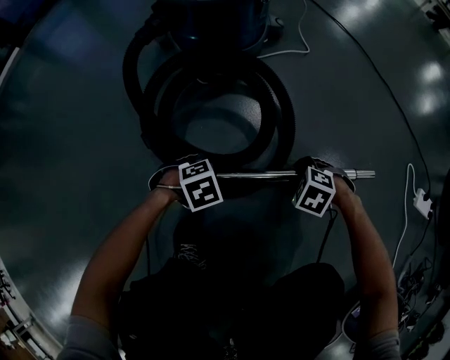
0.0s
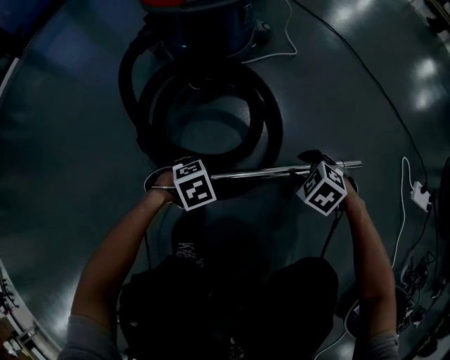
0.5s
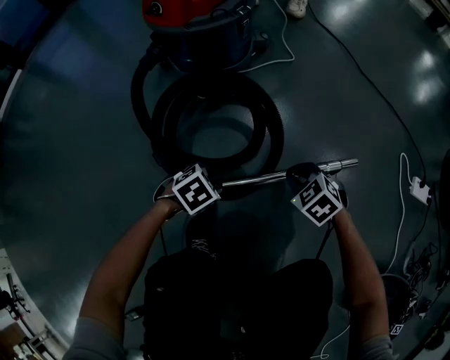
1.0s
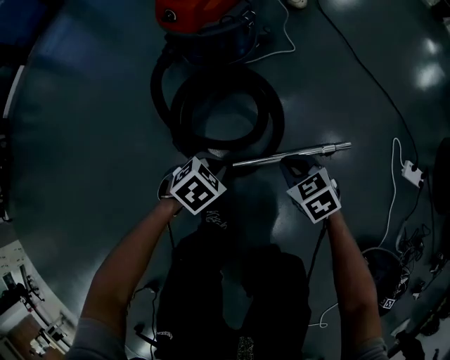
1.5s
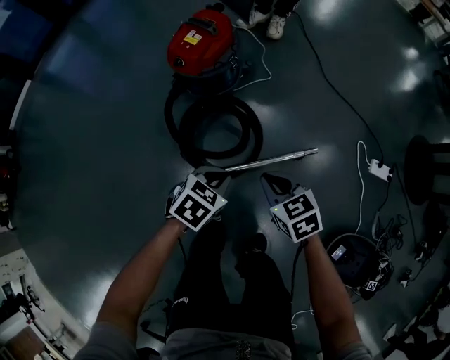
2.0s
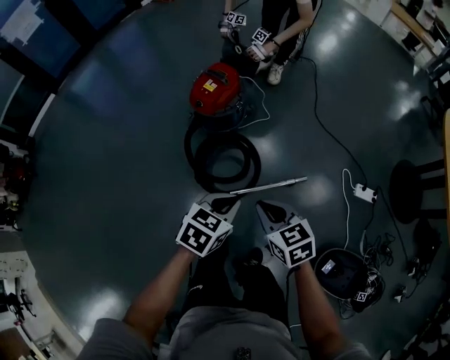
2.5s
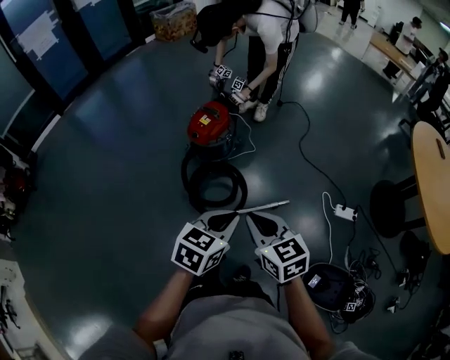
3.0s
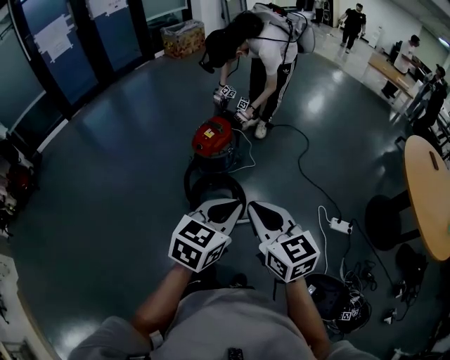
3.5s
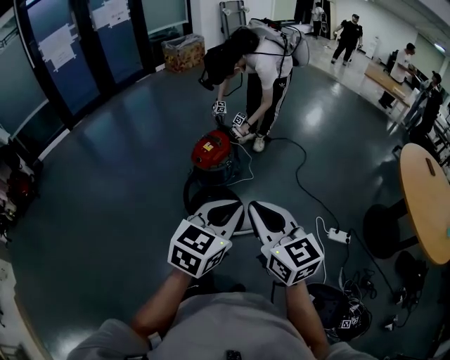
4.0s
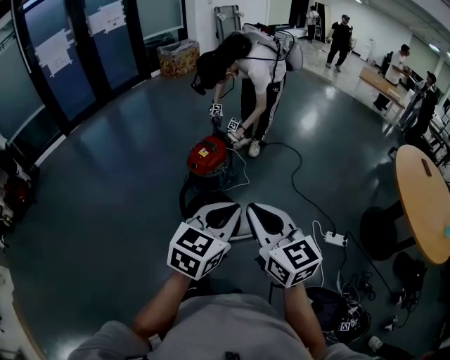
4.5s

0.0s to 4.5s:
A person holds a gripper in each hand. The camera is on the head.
0.0s to 2.0s: Both grippers move upward, roughly 50 cm. The left gripper changes its angle by roughly 30 degrees, and closes its fingers, while the right gripper angles its fingers upward, by about 40 degrees, and closes its fingers.
2.0s to 4.5s: Both grippers move upward, some 50 cm. The left gripper tips its fingers upward by roughly 40 degrees, while the right gripper tilts its fingers some 40 degrees upward.

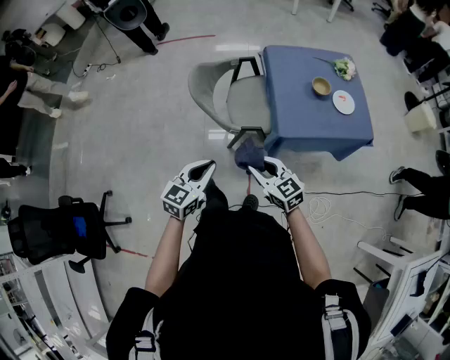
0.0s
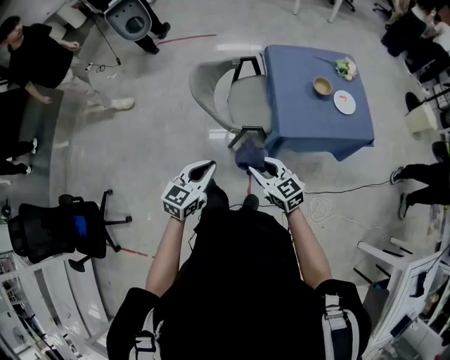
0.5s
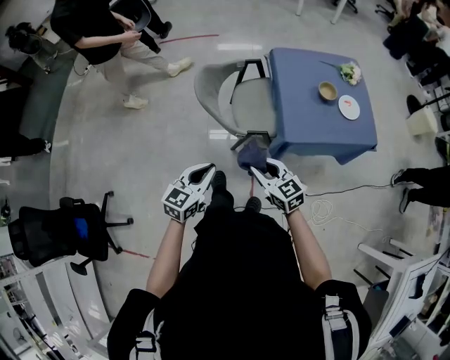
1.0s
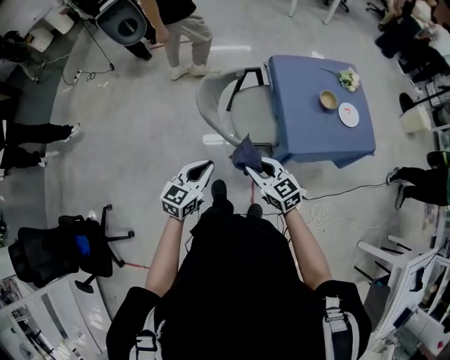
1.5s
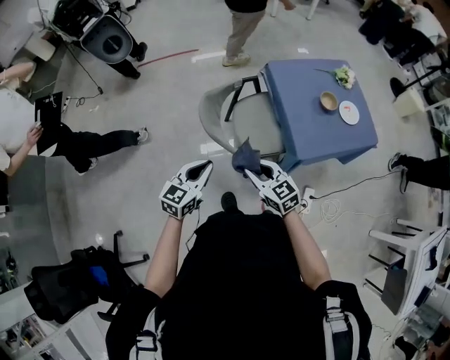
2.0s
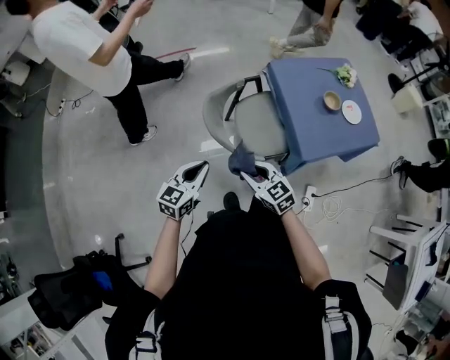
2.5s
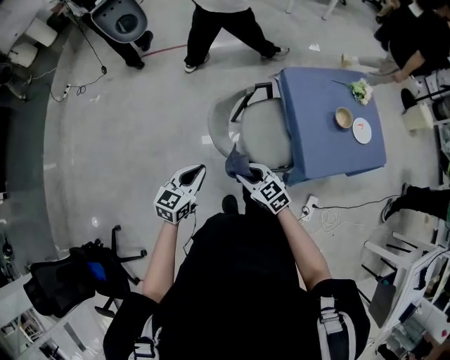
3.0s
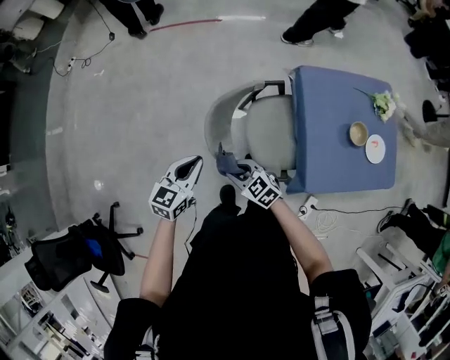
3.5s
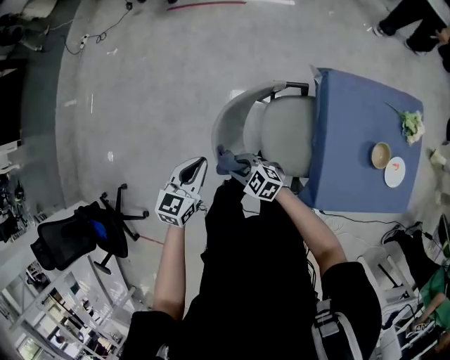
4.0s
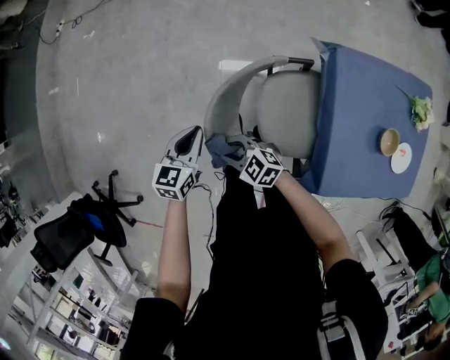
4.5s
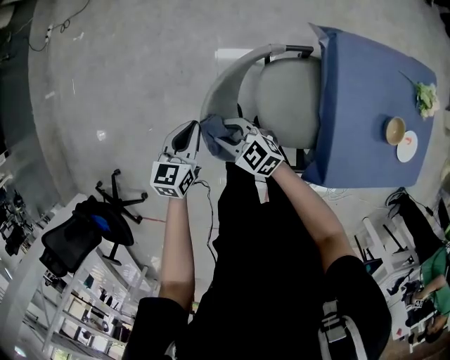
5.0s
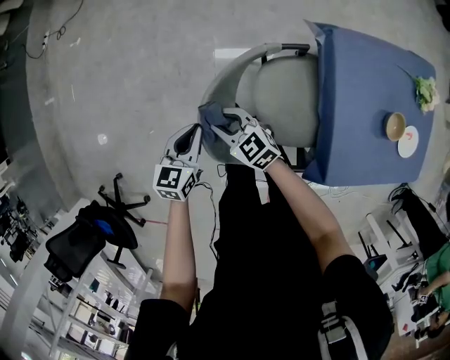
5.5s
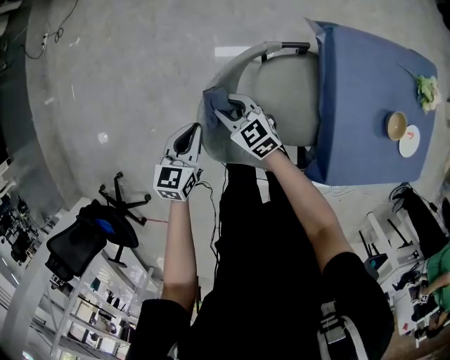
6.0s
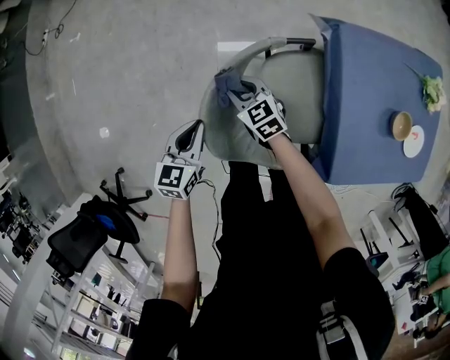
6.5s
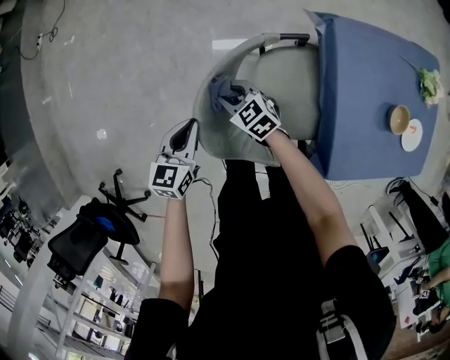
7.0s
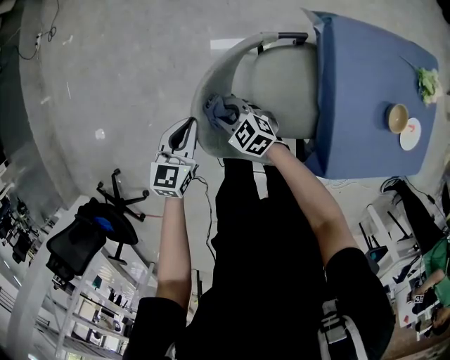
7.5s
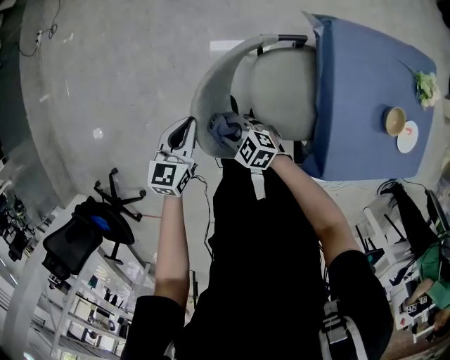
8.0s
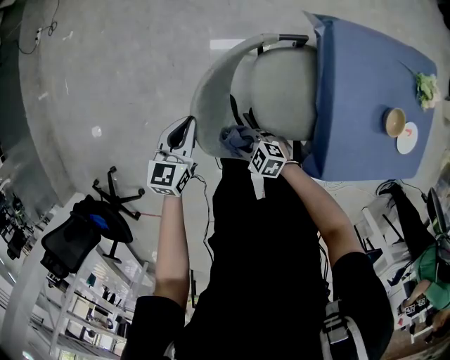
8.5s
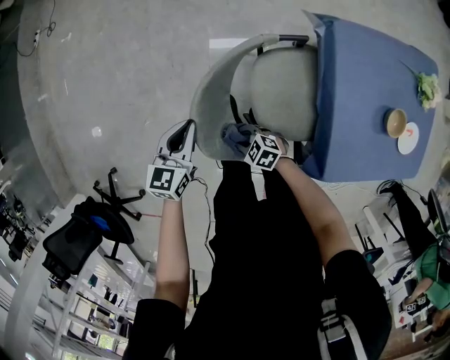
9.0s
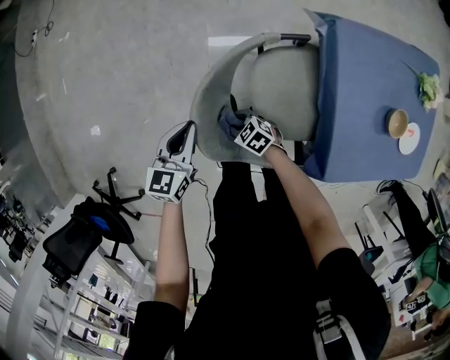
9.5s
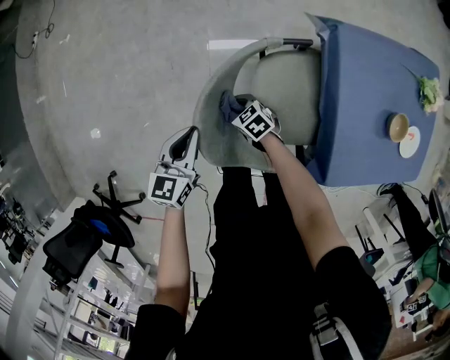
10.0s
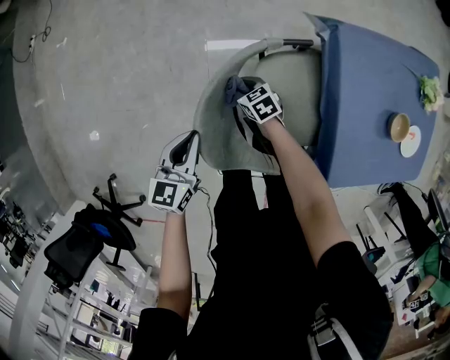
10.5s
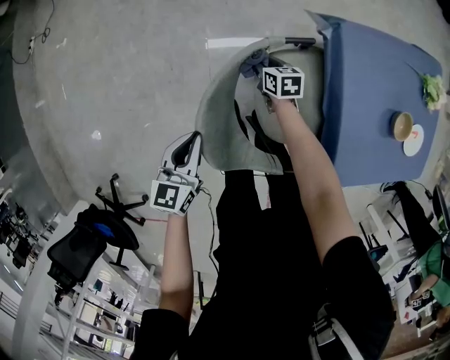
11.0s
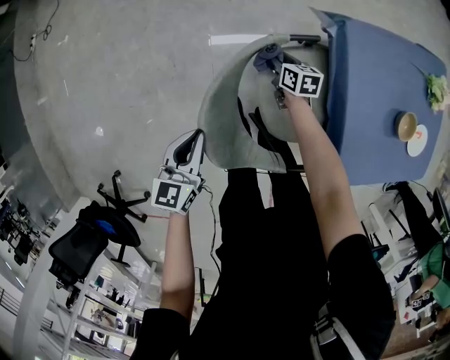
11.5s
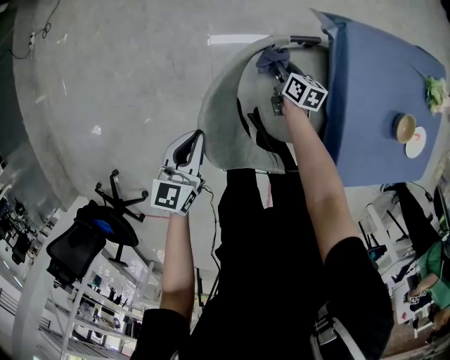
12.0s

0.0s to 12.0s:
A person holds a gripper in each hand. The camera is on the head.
0.0s to 2.0s: Both grippers move forward and to the left, some 25 cm.
2.0s to 4.0s: The left gripper ends up approximately 30 cm from where it was, and swivels about 30 degrees; the right gripper shifts by approximately 35 cm, and turns by approximately 50 degrees.
4.0s to 6.0s: The left gripper is displaced downward and forward by about 15 cm; the right gripper is displaced forward by roughly 15 cm, and rotates approximately 30 degrees.
6.0s to 8.0s: The right gripper travels backward and downward by some 15 cm, and rotates approximately 30 degrees.
8.0s to 10.0s: The right gripper shifts approximately 15 cm downward, forward and to the right, and rotates approximately 30 degrees.
10.0s to 12.0s: The right gripper moves approximately 20 cm, and rotates approximately 60 degrees.

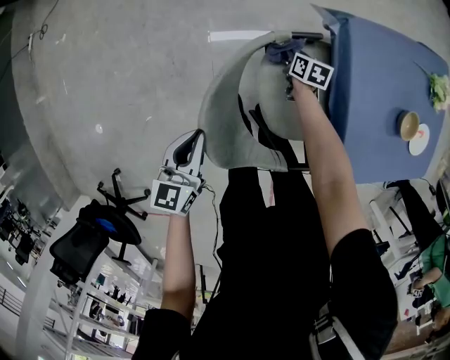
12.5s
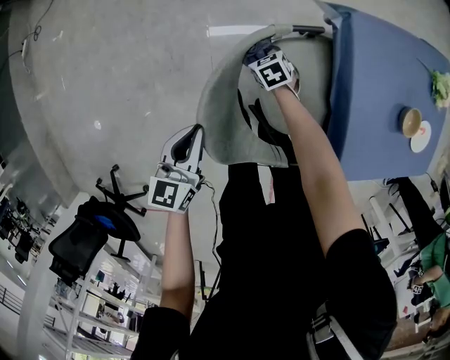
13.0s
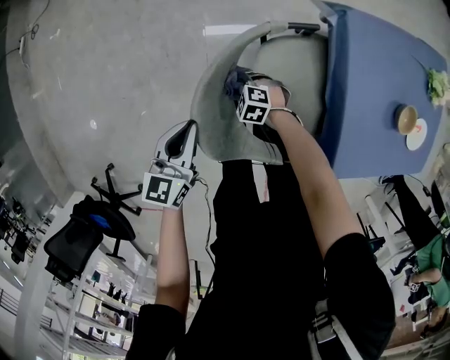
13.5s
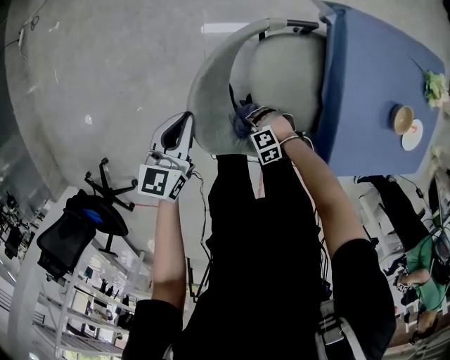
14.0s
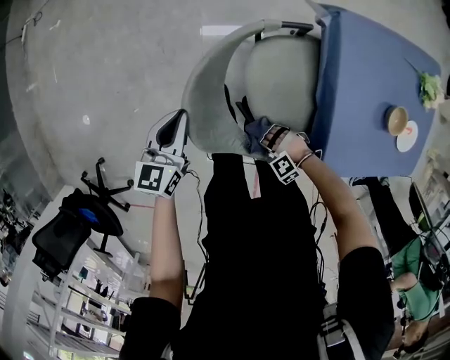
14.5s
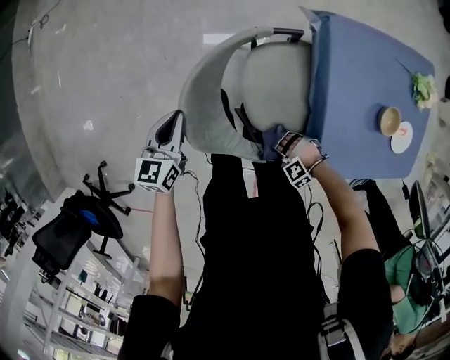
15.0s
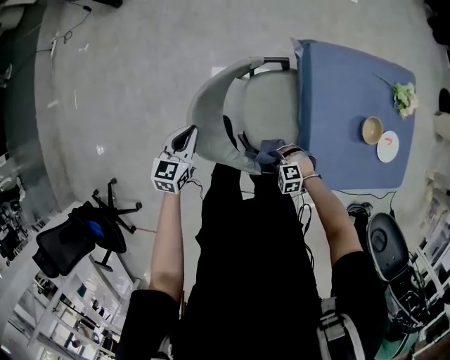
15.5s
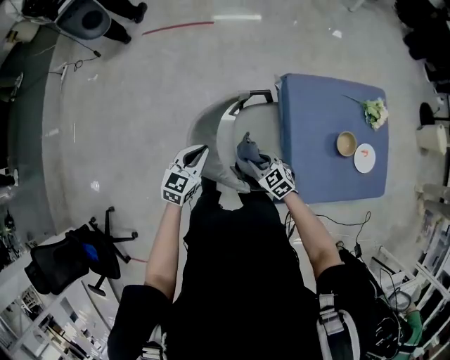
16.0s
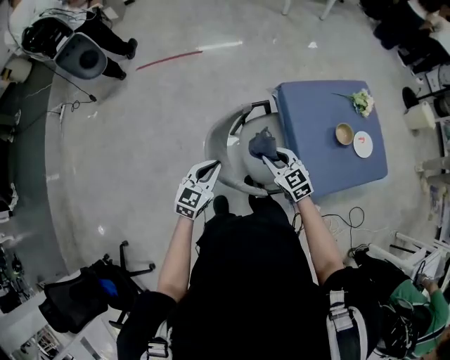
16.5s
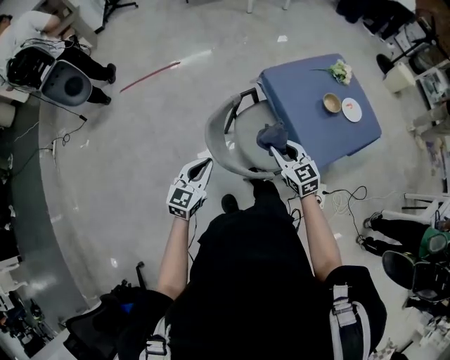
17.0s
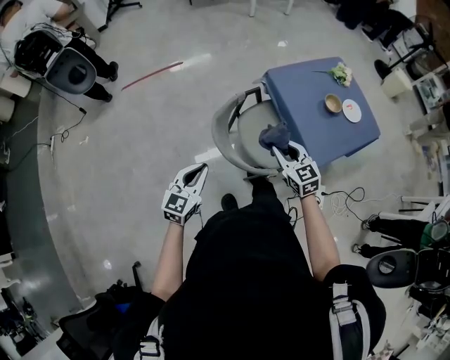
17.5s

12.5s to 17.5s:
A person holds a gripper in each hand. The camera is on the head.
12.5s to 15.0s: The right gripper ends up about 40 cm from where it was, and twists roughly 130 degrees counterclockwise, seen from behind.
15.0s to 17.5s: The left gripper goes about 25 cm upward, and rotates about 40 degrees; the right gripper shifts some 50 cm upward, and tips its fingers upward by some 50 degrees.

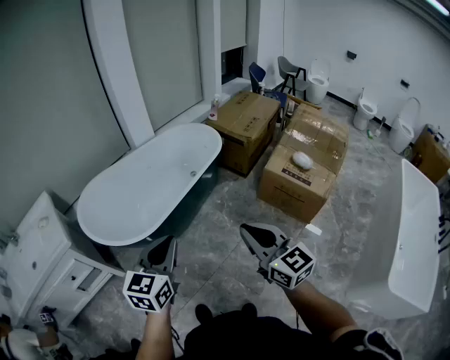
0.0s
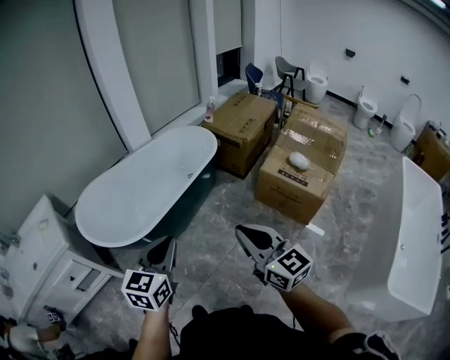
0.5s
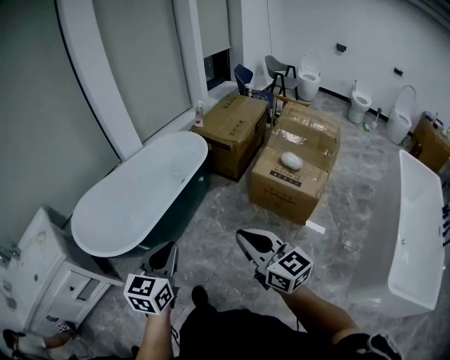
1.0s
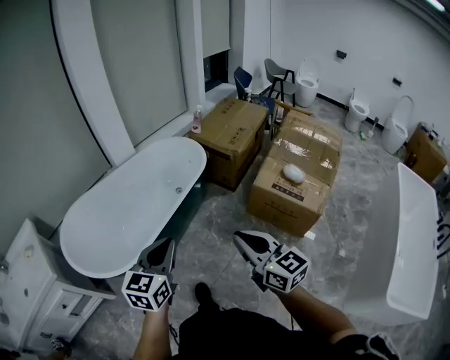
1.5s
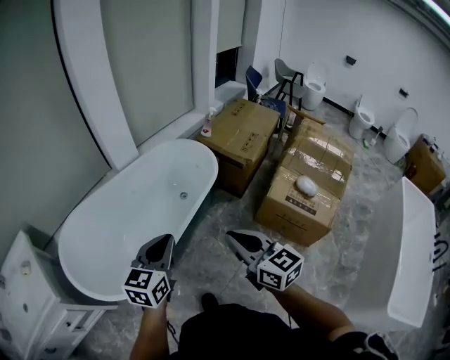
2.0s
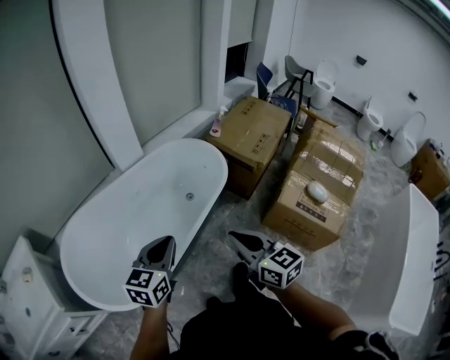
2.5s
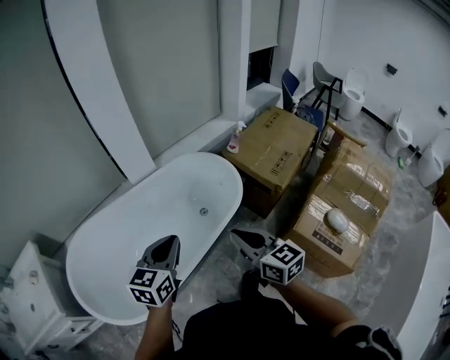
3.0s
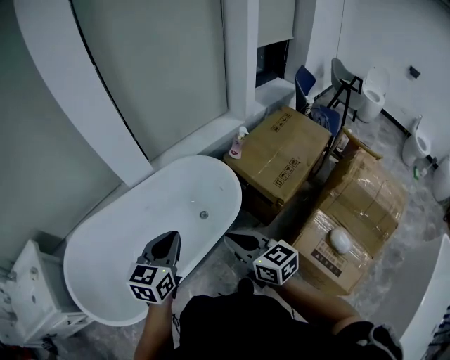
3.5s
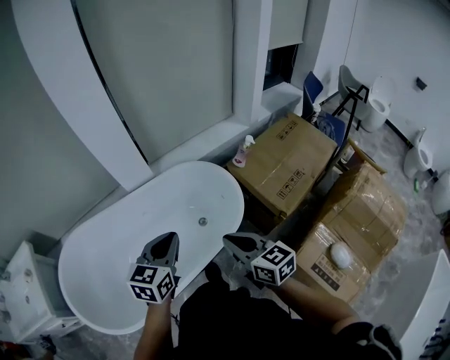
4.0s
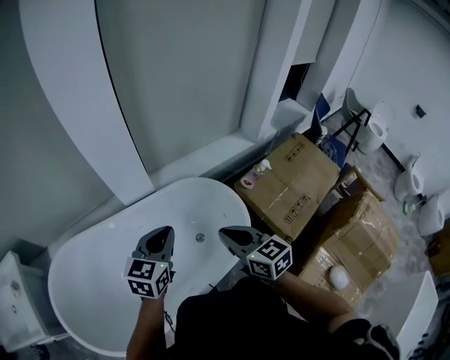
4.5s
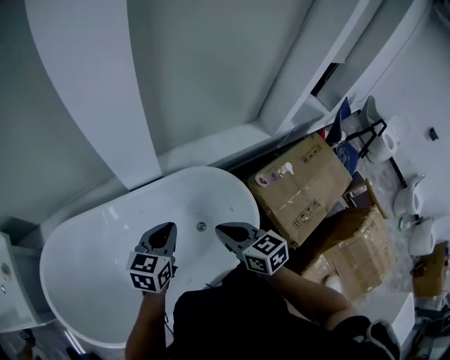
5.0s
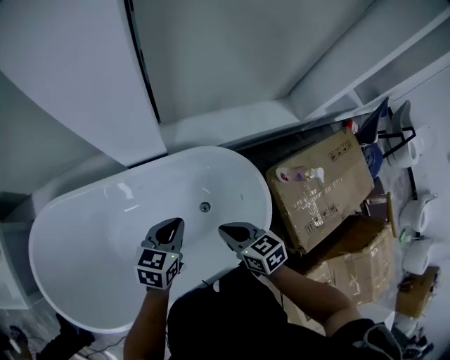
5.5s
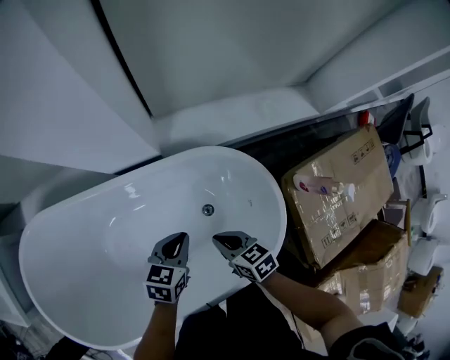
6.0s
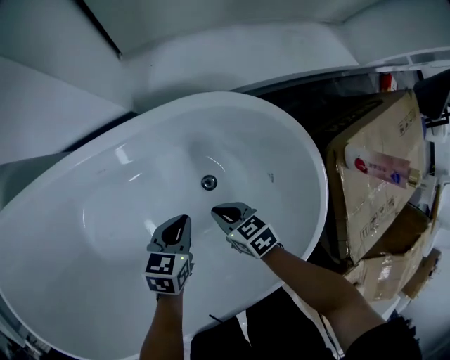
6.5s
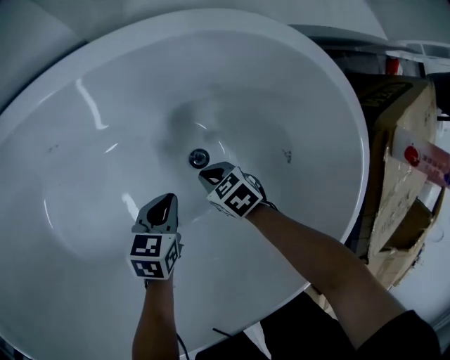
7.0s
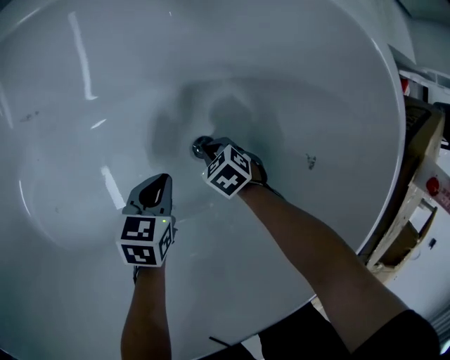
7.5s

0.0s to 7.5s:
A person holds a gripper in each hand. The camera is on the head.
0.0s to 2.0s: Both grippers travel together forward, approximately 30 cm.
2.0s to 4.0s: The two grippers travel together, forward, about 40 cm. The right gripper changes its angle by some 20 degrees.
4.0s to 5.5s: Both grippers travel together forward and downward, about 35 cm. The right gripper rotates some 30 degrees.
5.5s to 7.5s: The grippers both shift downward by some 70 cm. The left gripper turns by some 30 degrees; the right gripper points its fingers about 40 degrees further downward.
